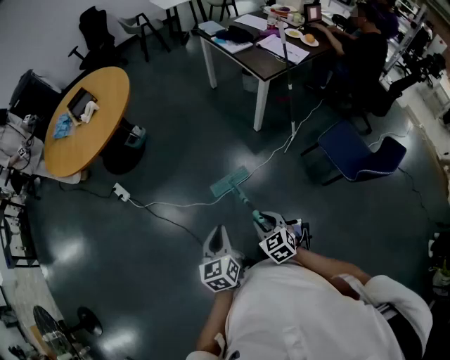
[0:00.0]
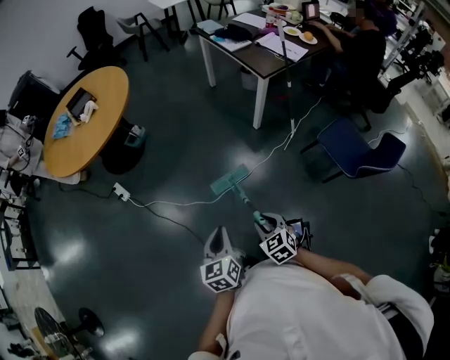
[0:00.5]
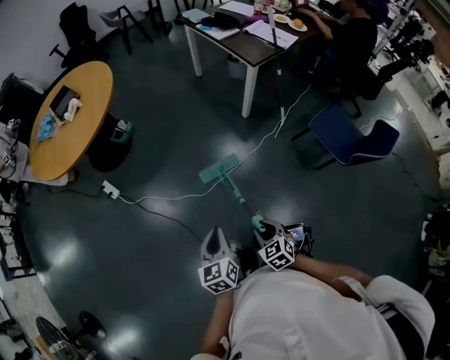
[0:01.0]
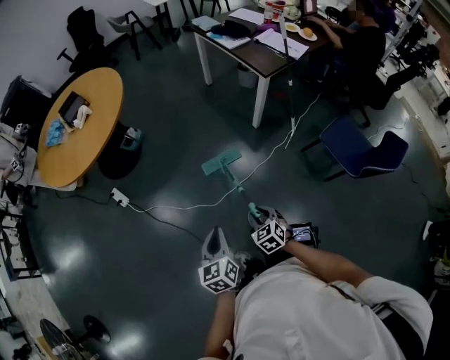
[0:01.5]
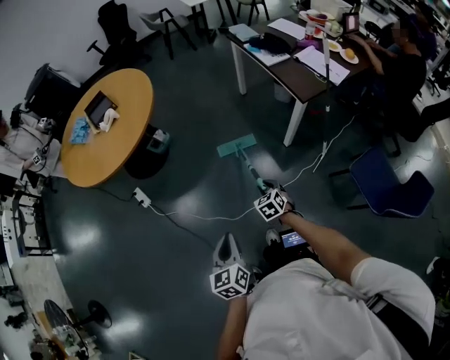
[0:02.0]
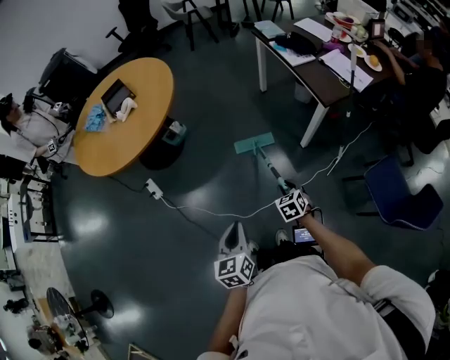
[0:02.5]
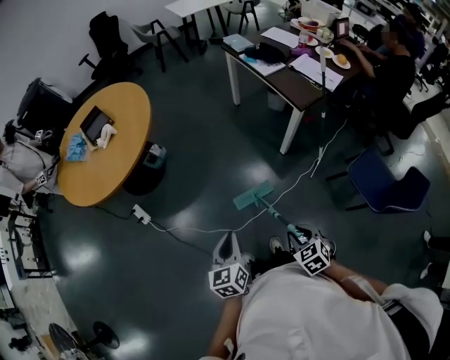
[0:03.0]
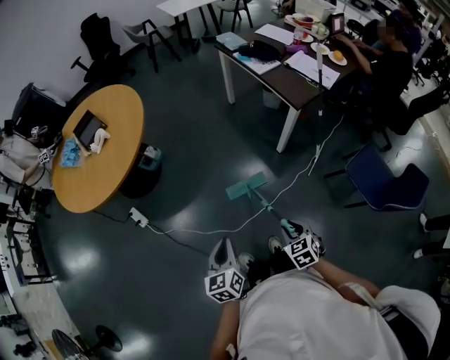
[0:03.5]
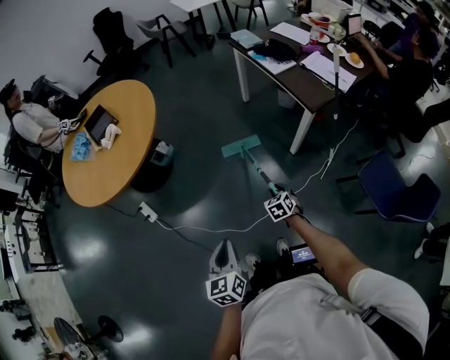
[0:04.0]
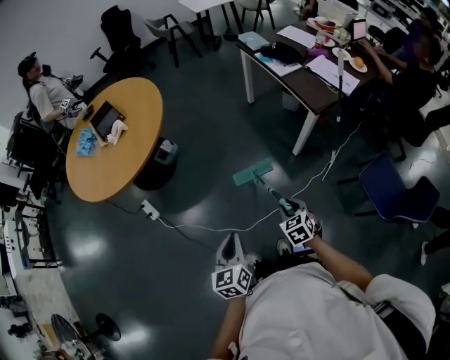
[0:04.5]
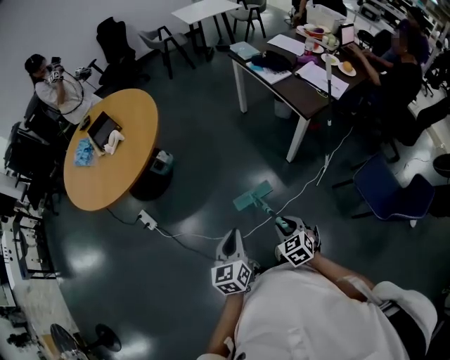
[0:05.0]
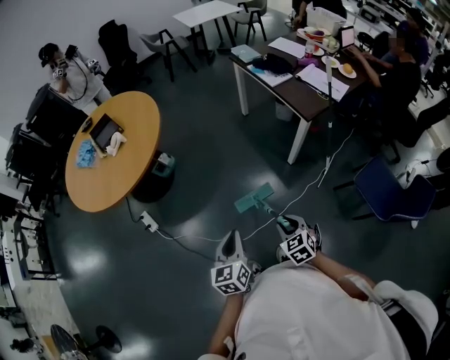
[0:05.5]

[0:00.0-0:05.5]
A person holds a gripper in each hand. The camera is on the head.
0:00.0 to 0:02.0: The right gripper is displaced forward by roughly 30 cm; the left gripper travels forward by approximately 15 cm.
0:02.0 to 0:03.5: The right gripper is displaced backward and upward by approximately 15 cm. The left gripper shifts some 5 cm forward.
0:03.5 to 0:05.5: The right gripper travels forward and back again, approximately 20 cm each way.

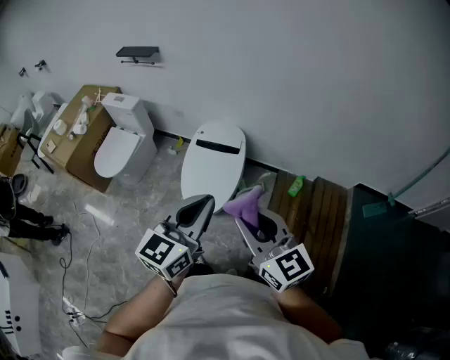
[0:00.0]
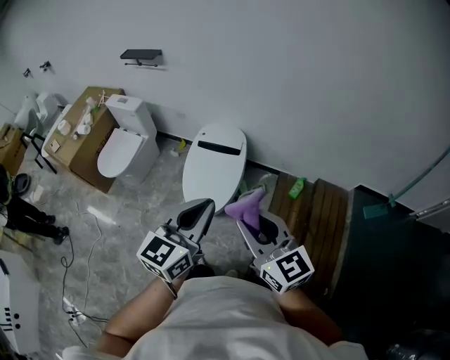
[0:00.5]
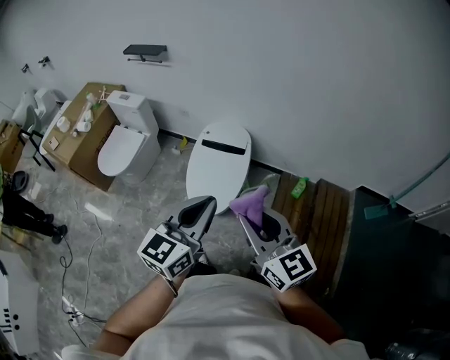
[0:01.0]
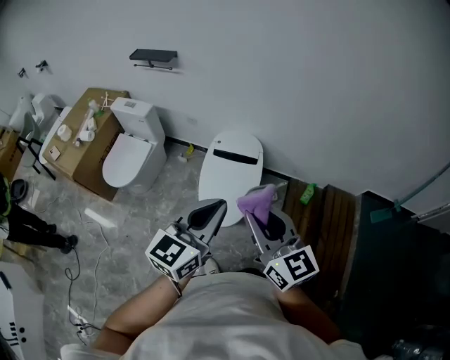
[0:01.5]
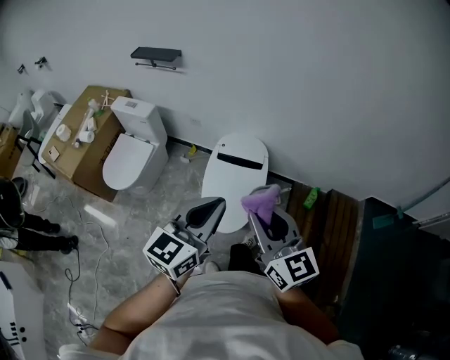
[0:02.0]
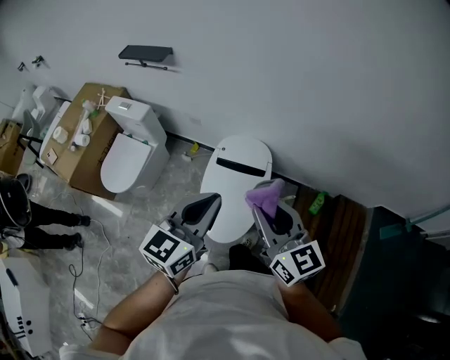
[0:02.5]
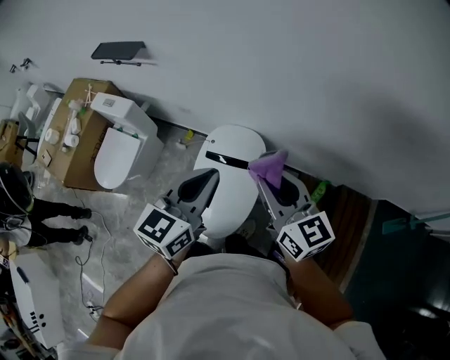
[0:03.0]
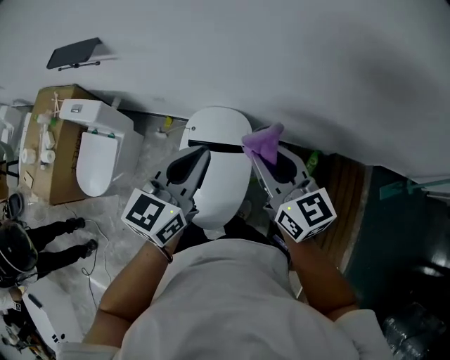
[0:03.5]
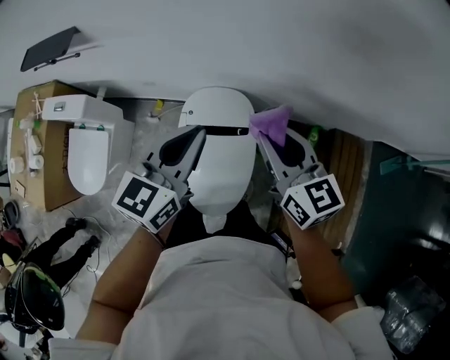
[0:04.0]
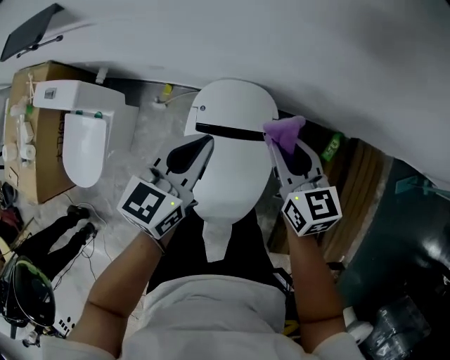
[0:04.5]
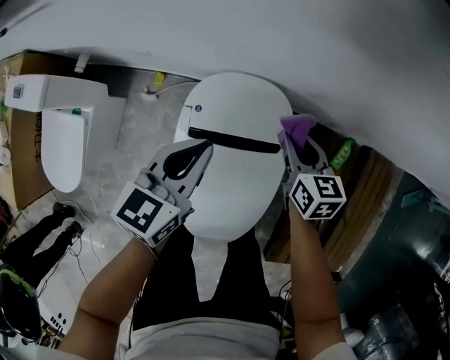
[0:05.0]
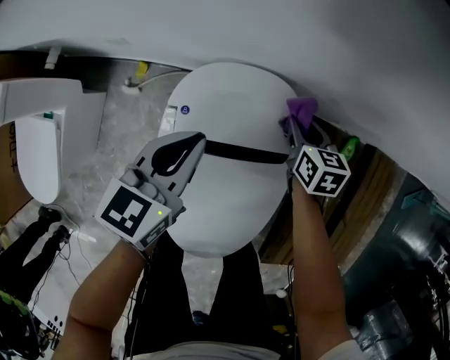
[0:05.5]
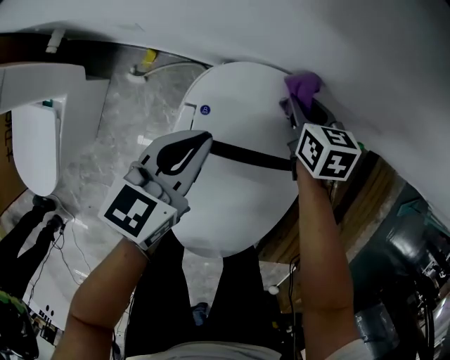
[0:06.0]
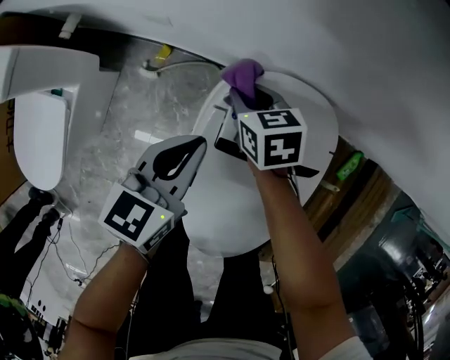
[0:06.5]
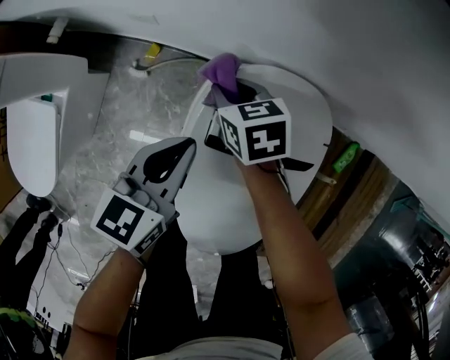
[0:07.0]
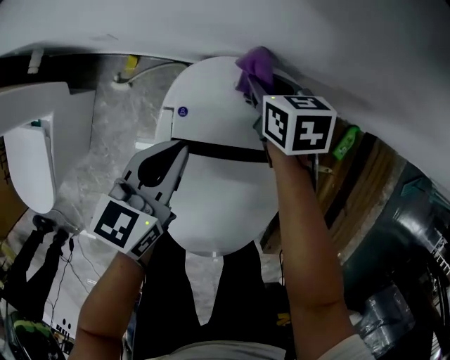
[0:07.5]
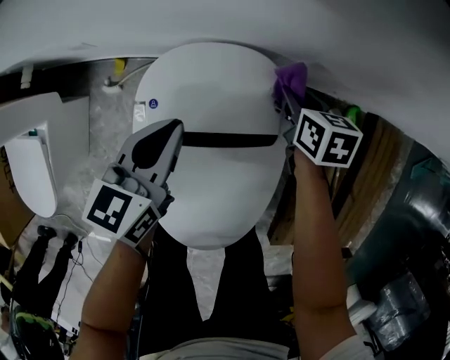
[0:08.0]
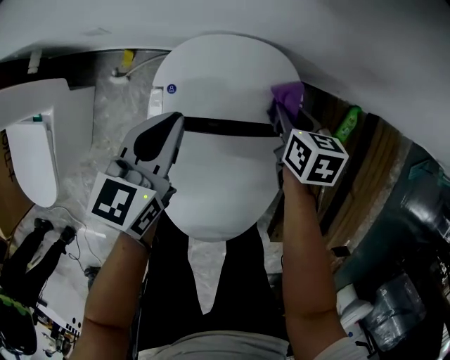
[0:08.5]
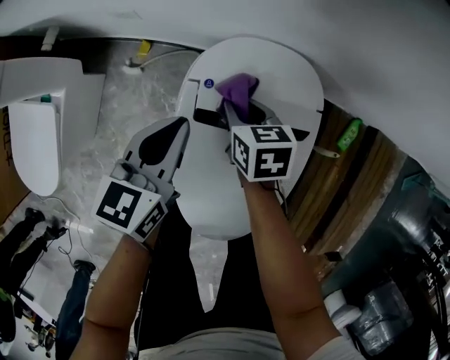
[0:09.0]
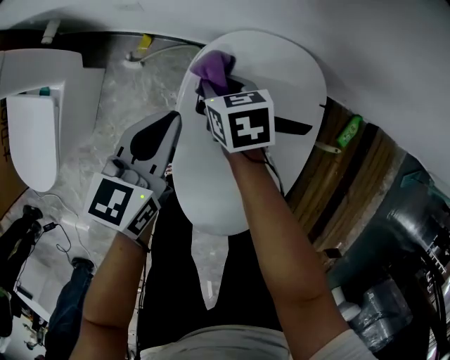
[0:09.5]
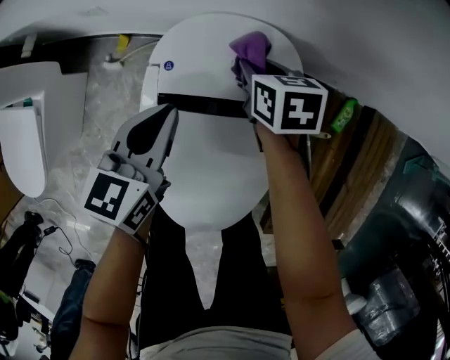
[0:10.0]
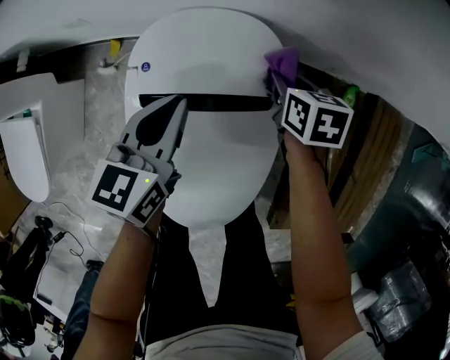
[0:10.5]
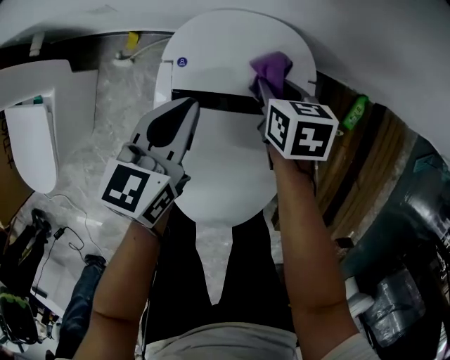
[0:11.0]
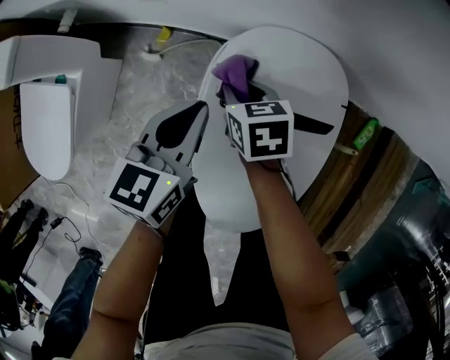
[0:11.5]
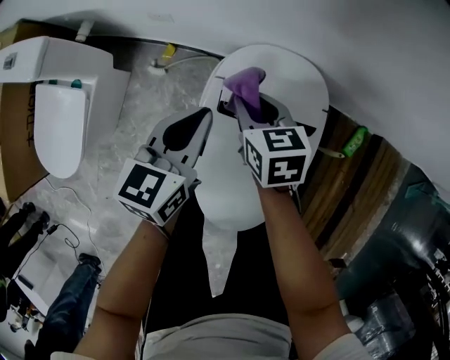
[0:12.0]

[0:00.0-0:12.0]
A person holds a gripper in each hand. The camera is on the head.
0:00.0 to 0:02.0: The grippers both shift to the left and forward by some 15 cm.
0:02.0 to 0:04.0: The grippers both shift forward by some 35 cm.
0:04.0 to 0:06.0: The right gripper moves downward and forward, about 50 cm, and points its fingers roughly 30 degrees further downward. The left gripper is displaced downward by roughly 40 cm.
0:06.0 to 0:08.0: The right gripper moves roughly 20 cm to the left and comes back.
0:08.0 to 0:10.0: The left gripper goes to the left and returns, roughly 10 cm each way. The right gripper moves to the left, some 10 cm.
0:10.0 to 0:12.0: The left gripper is displaced upward and to the left by approximately 10 cm, while the right gripper shifts about 15 cm to the left, upward and backward.

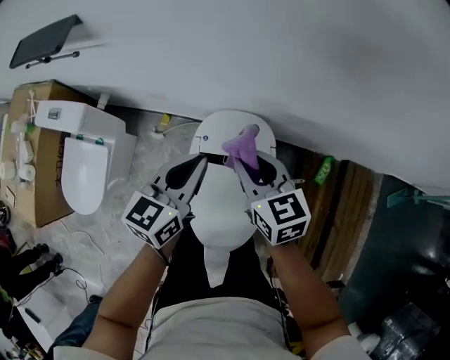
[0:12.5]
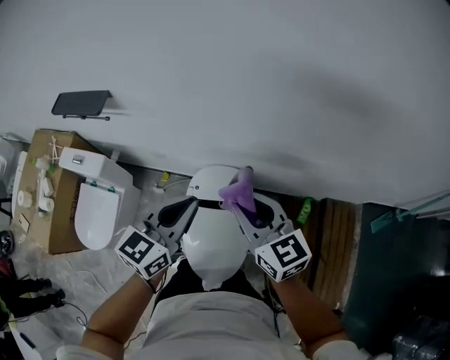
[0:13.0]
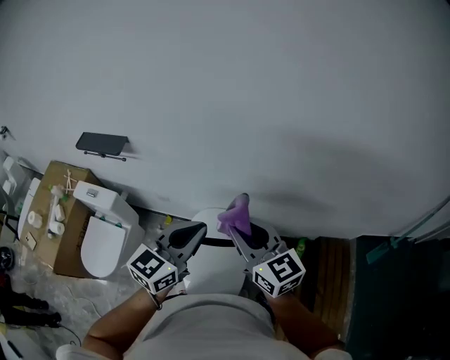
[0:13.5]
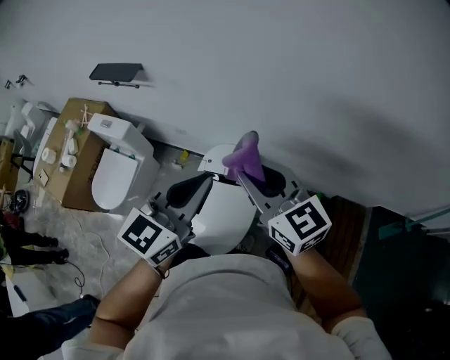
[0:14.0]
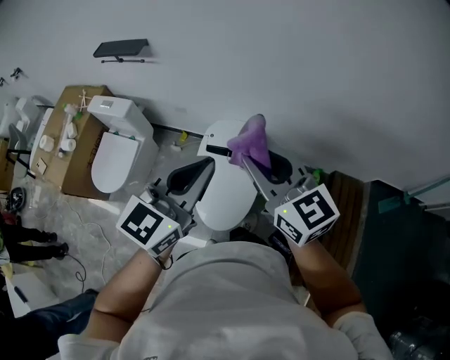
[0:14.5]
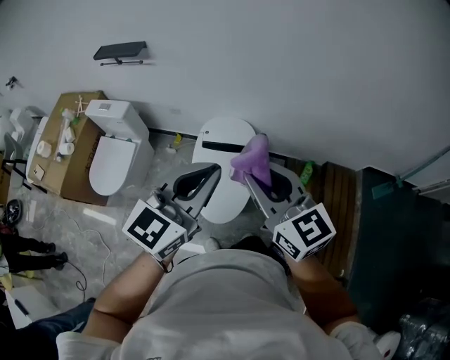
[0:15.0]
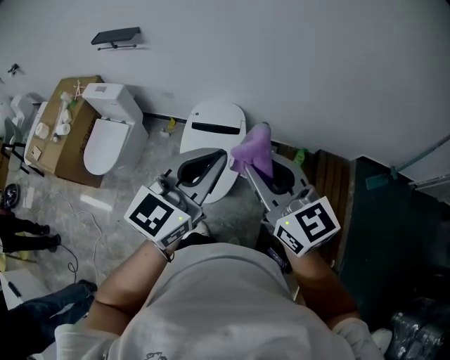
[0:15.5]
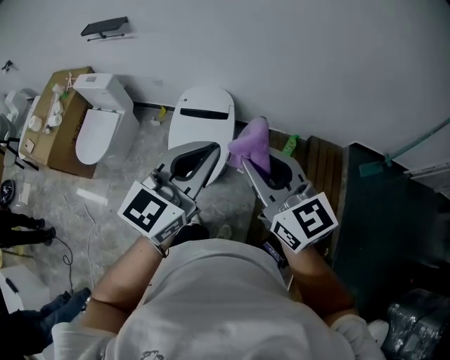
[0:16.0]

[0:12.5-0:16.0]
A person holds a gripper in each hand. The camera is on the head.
0:12.5 to 0:14.5: The grippers both shift upward and backward by roughly 40 cm. The right gripper swivels roughly 30 degrees, while the left gripper swivels roughly 20 degrees.
0:14.5 to 0:16.0: Both grippers travel together backward and to the right, some 25 cm.

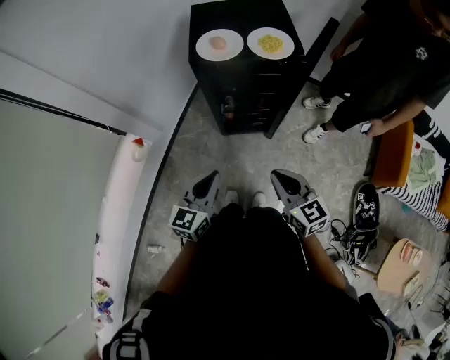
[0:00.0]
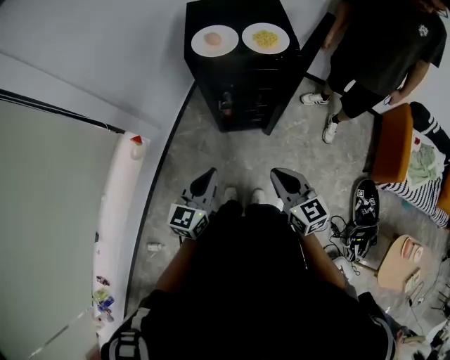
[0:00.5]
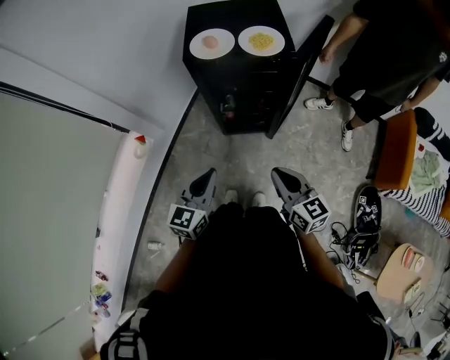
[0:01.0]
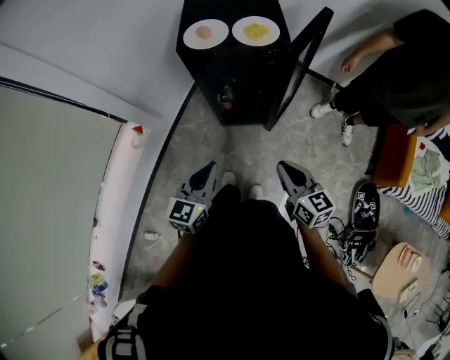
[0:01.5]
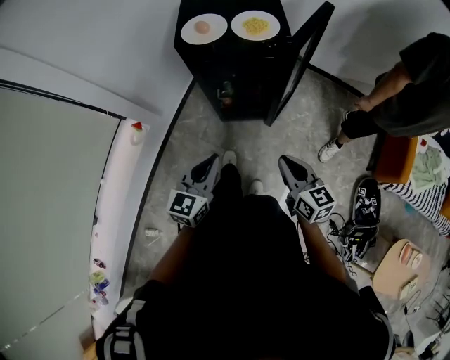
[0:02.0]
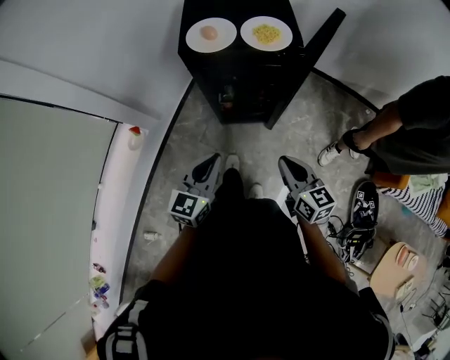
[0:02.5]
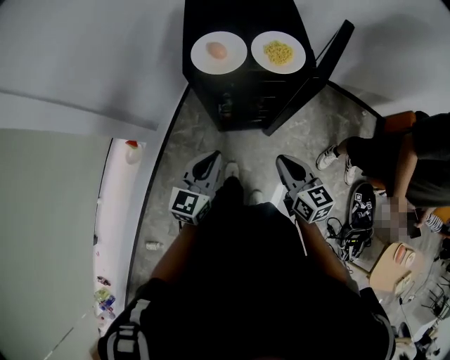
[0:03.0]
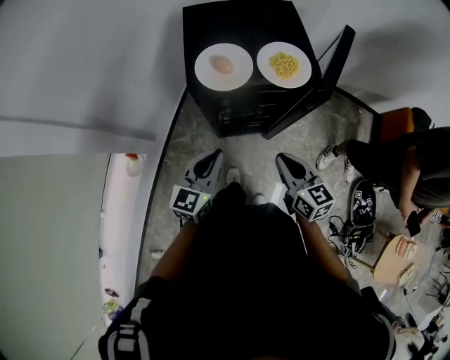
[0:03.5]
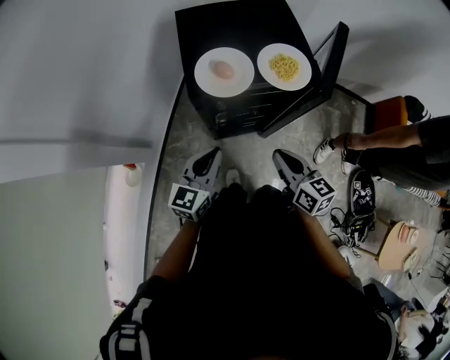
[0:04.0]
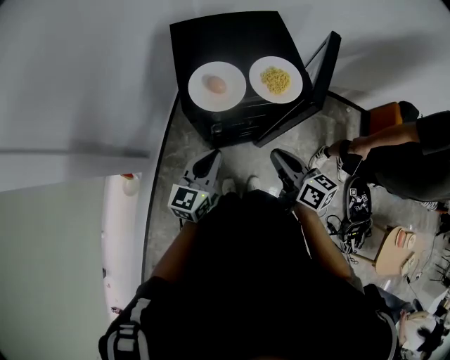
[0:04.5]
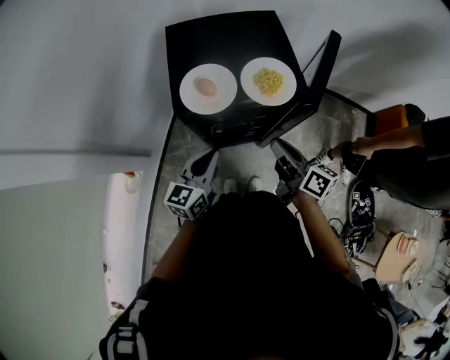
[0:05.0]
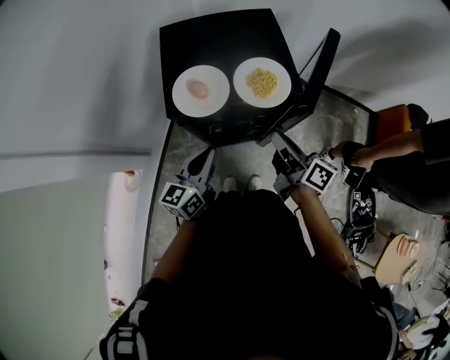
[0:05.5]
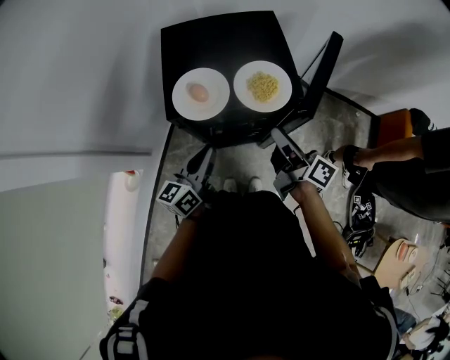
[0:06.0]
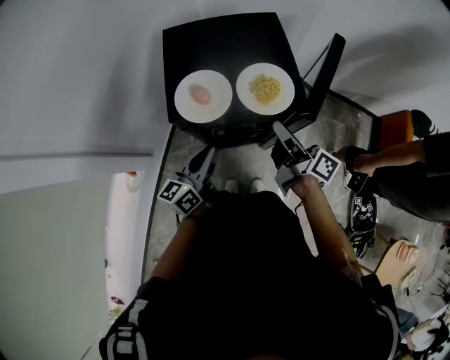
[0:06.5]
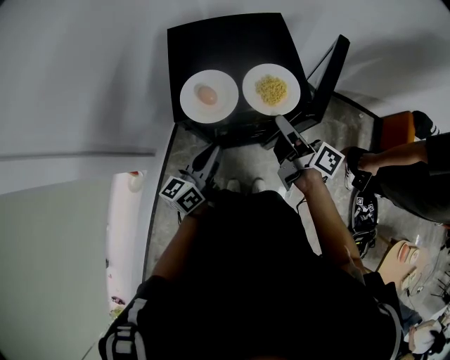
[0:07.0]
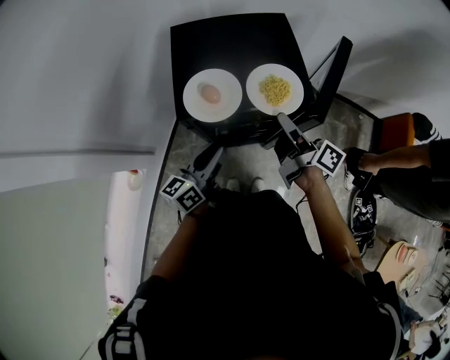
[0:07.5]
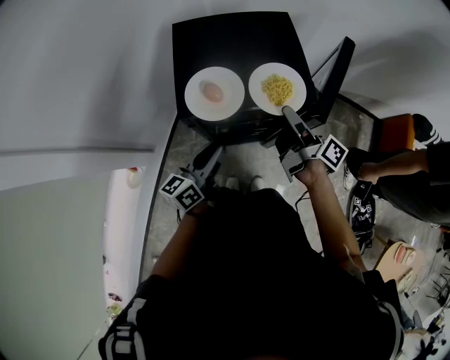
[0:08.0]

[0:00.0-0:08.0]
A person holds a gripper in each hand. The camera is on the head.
0:00.0 to 0:02.0: The left gripper changes place by approximately 5 cm.
0:02.0 to 0:04.0: The left gripper moves roughly 25 cm.
0:04.0 to 0:06.0: The left gripper shifts by some 10 cm, and changes its angle by about 30 degrees.
